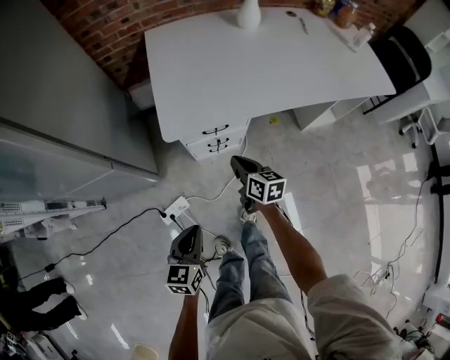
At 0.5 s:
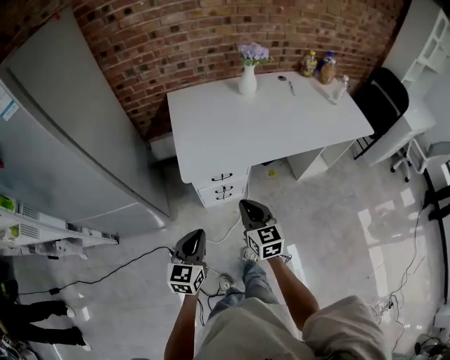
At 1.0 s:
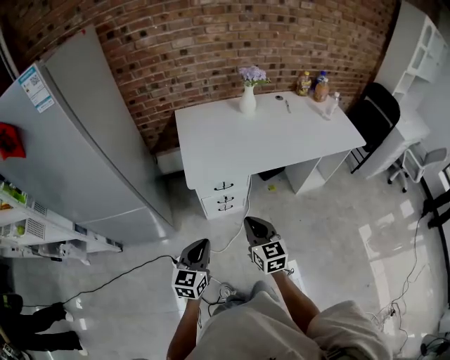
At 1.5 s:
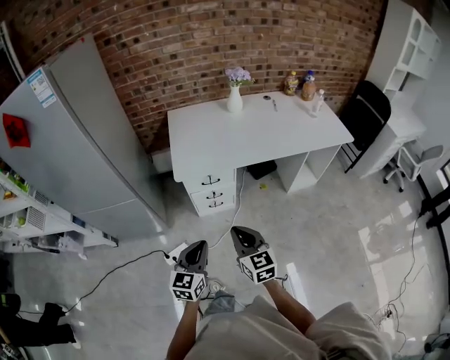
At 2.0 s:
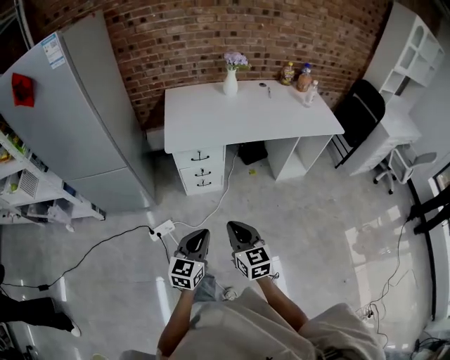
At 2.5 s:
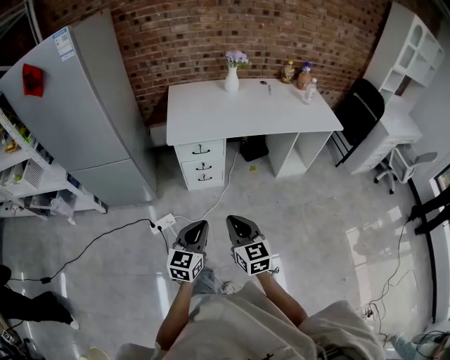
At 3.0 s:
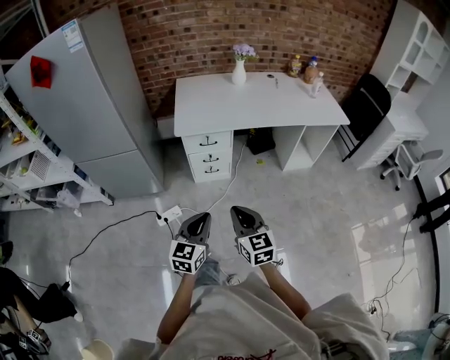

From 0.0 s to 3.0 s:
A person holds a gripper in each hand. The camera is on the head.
From 0.0 s to 1.5 s: The left gripper shifts approximately 20 cm upward, backward and to the right; the right gripper is displaced backward and upward by about 35 cm, and changes its angle by roughly 30 degrees.
From 1.5 s to 3.0 s: The right gripper moves backward, some 15 cm. Meanwhile the left gripper travels backward and to the right by approximately 15 cm.

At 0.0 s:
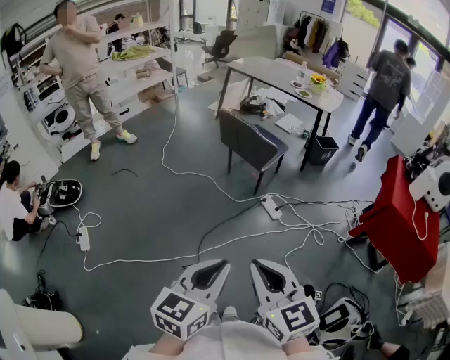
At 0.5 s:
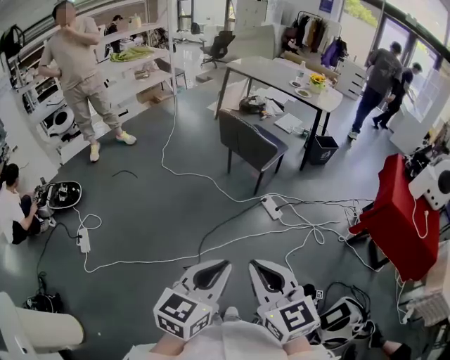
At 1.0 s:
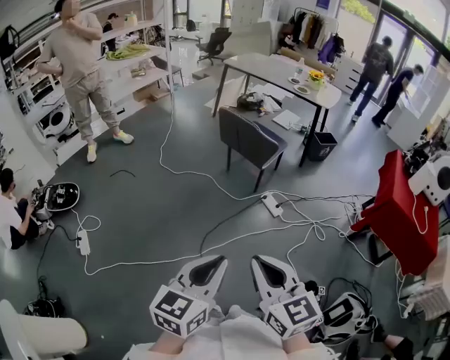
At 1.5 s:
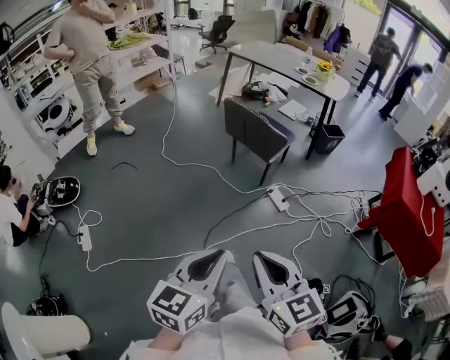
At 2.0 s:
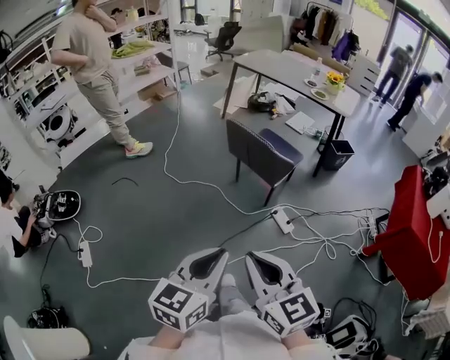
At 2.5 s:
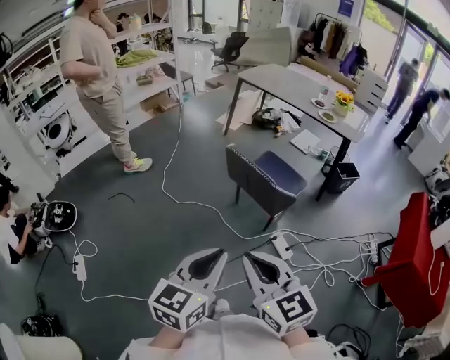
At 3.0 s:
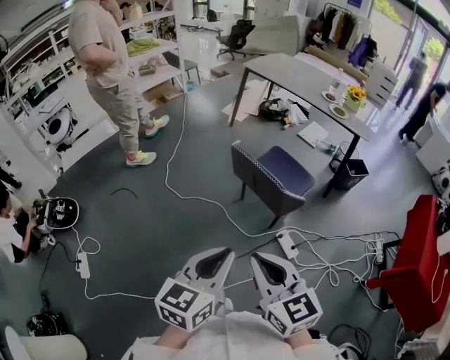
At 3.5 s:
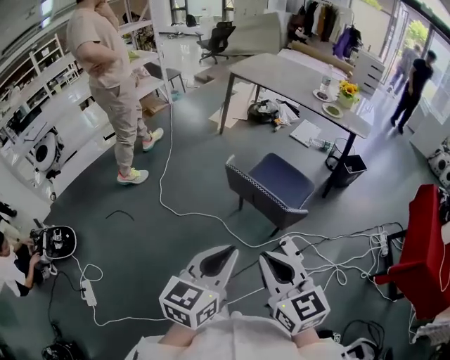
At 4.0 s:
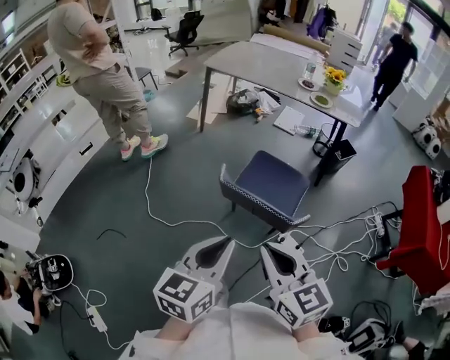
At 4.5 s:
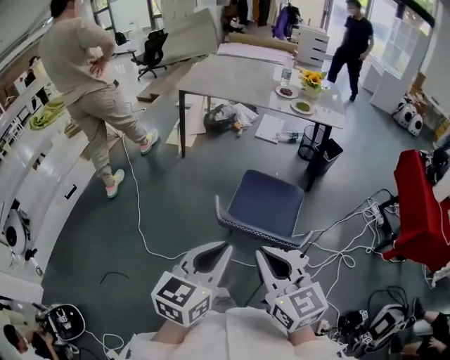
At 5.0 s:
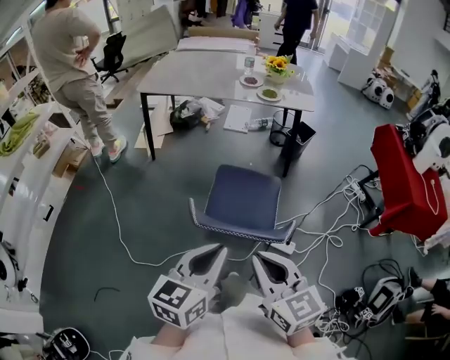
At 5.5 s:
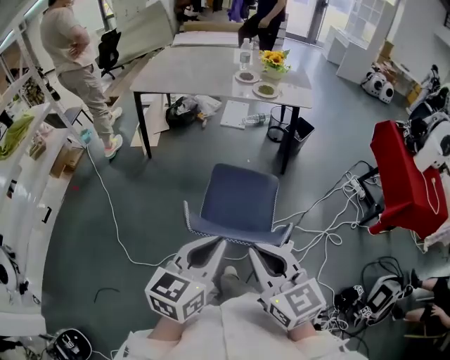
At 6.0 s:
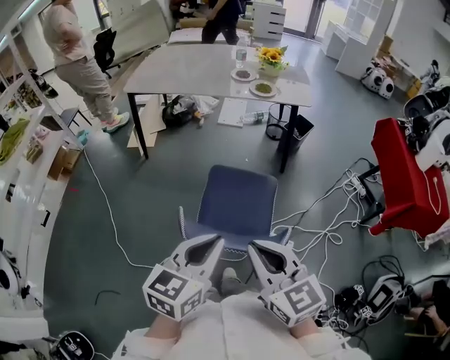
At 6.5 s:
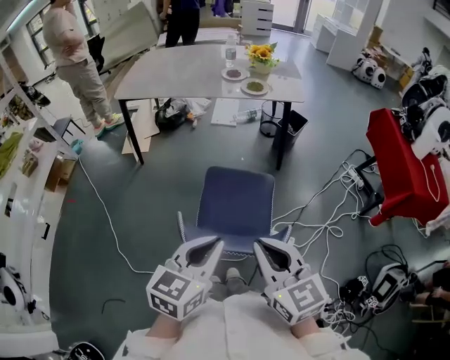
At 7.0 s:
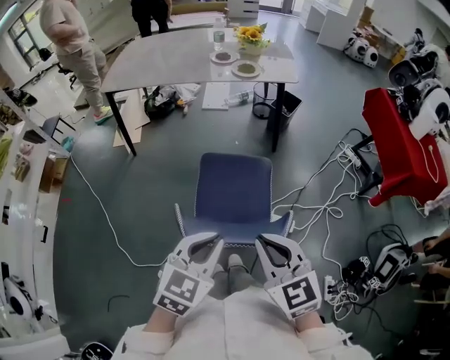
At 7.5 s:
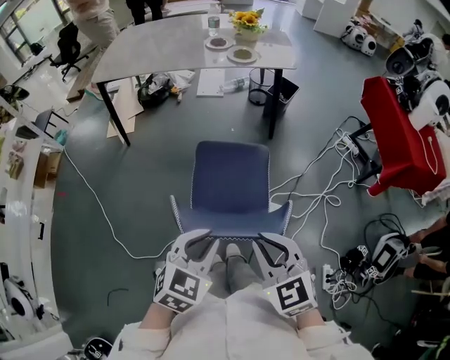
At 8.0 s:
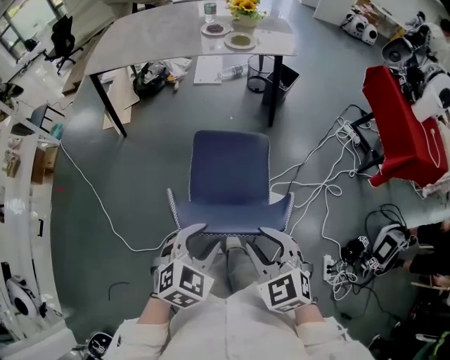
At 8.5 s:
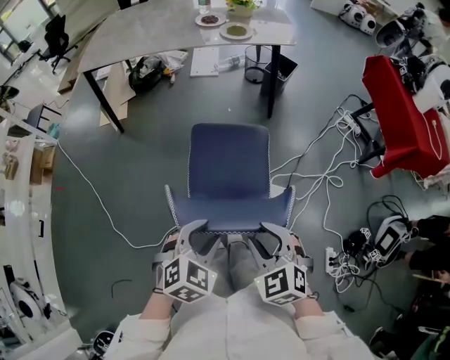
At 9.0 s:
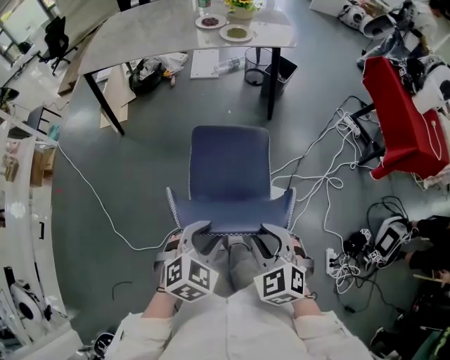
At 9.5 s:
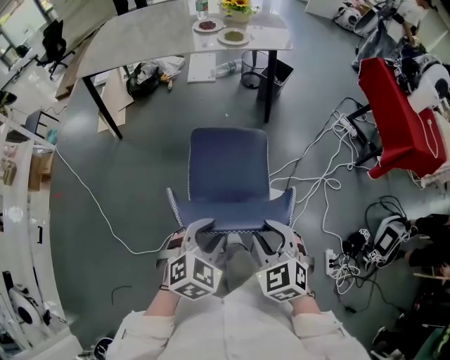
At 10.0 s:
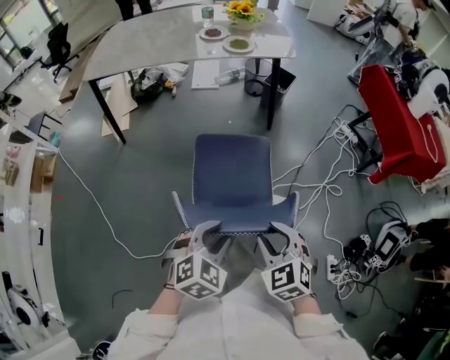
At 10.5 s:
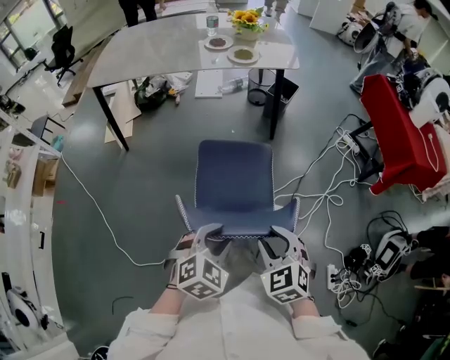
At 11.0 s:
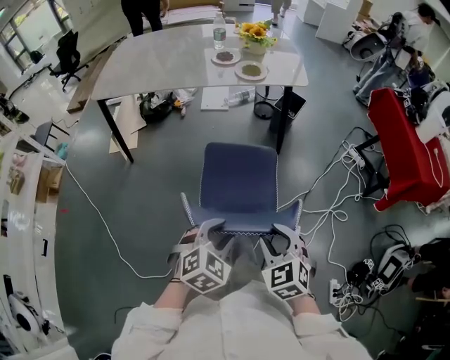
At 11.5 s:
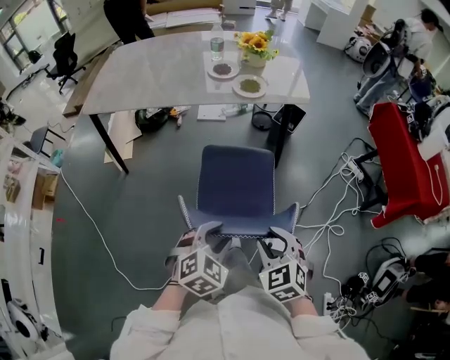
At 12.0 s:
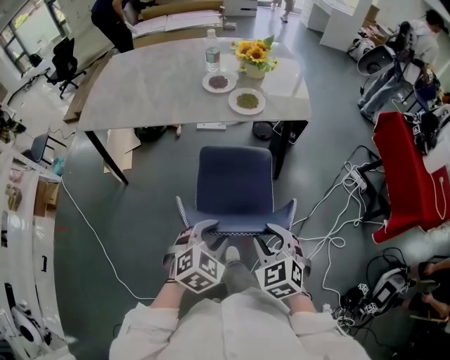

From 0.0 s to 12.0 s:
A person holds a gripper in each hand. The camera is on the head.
From 0.0 s to 2.0 s: The two grippers go about 20 cm forward.
From 2.0 s to 4.0 s: The two grippers travel together, forward, approximately 40 cm.
From 4.0 s to 6.0 s: Both grippers move forward, approximately 20 cm. The left gripper rotates approximately 20 degrees.
From 6.0 s to 8.0 s: The two grippers go roughly 15 cm downward. The left gripper rotates some 40 degrees, and opens its fingers; the right gripper changes its angle by roughly 30 degrees, and opens its fingers.
From 8.0 s to 10.0 s: The right gripper ends up approximately 5 cm from where it was.
From 10.0 s to 12.0 s: The grippers both shift forward by approximately 30 cm.

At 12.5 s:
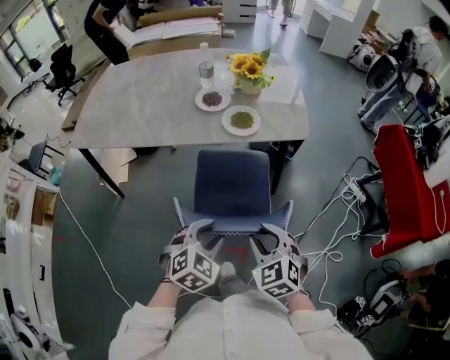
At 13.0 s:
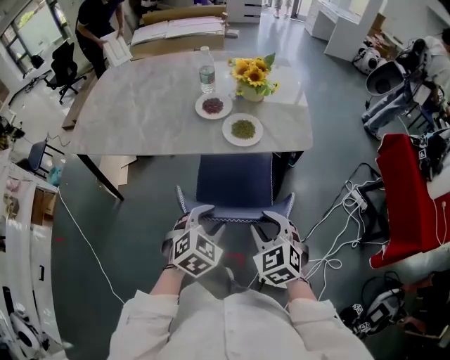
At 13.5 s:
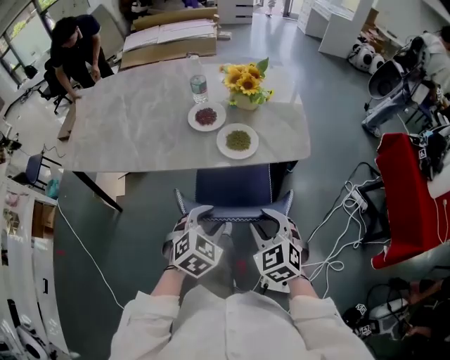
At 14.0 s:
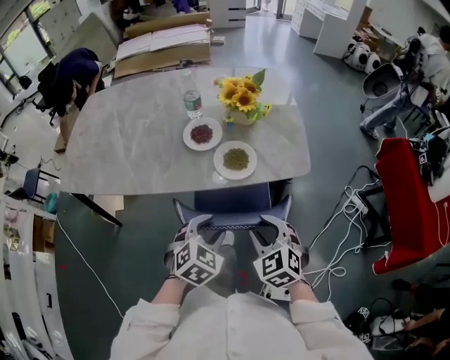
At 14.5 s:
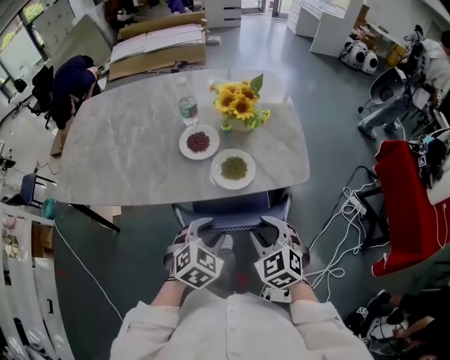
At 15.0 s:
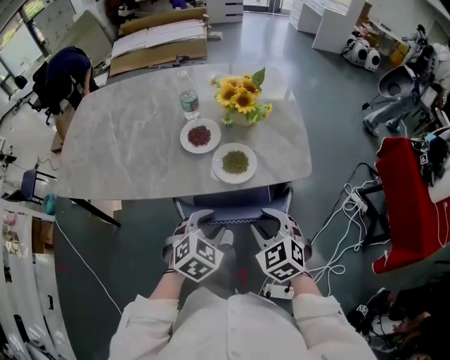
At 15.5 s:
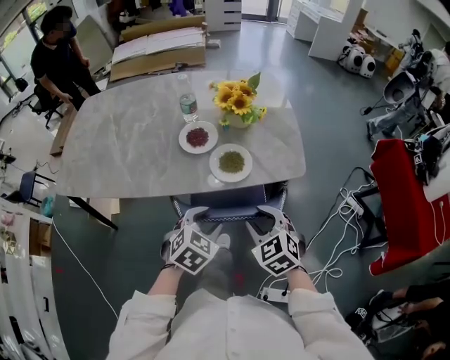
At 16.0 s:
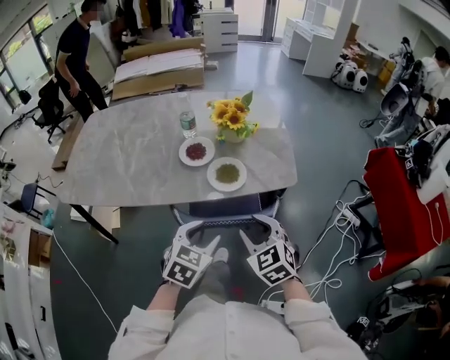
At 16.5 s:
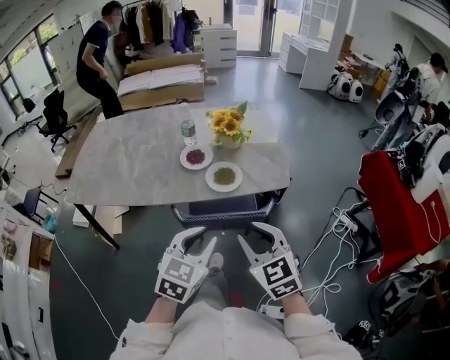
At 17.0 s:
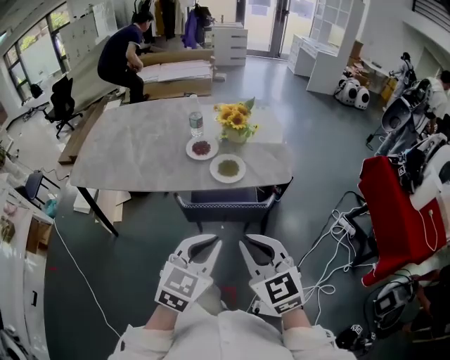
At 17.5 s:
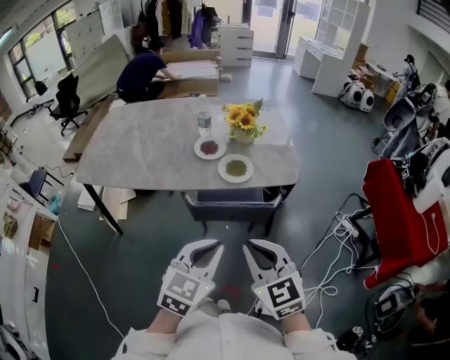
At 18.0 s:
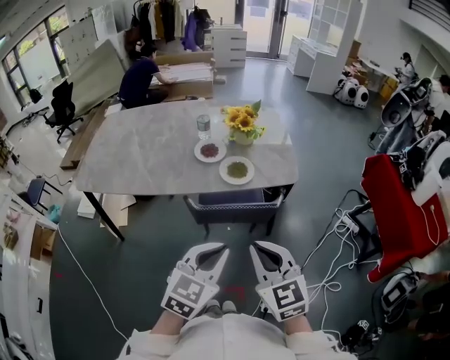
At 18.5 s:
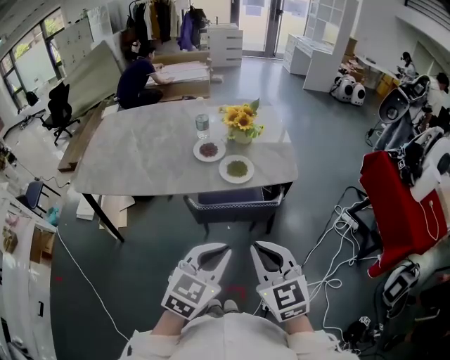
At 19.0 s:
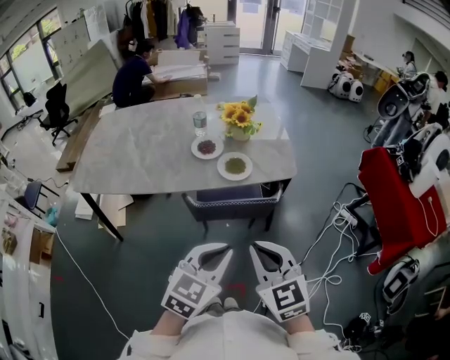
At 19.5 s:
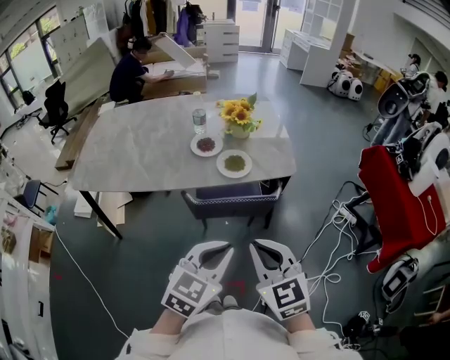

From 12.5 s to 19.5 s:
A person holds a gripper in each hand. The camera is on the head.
From 12.5 s to 14.5 s: The grippers both shift forward by roughly 25 cm.
From 14.5 s to 16.0 s: The left gripper ends up roughly 5 cm from where it was, while the right gripper shifts by about 5 cm.
From 16.0 s to 17.5 s: The grippers both shift backward and upward by approximately 20 cm. The left gripper closes up; the right gripper closes its fingers.
From 17.5 s to 19.5 s: The grippers stay close to where they were, moving slightly.

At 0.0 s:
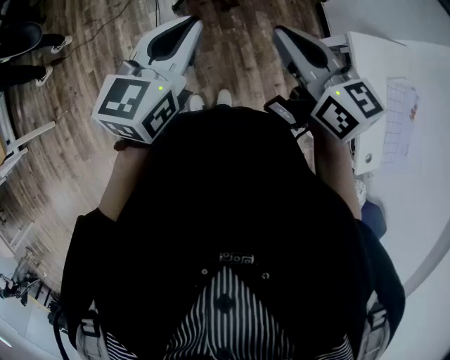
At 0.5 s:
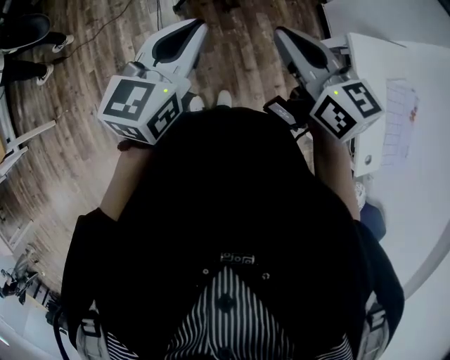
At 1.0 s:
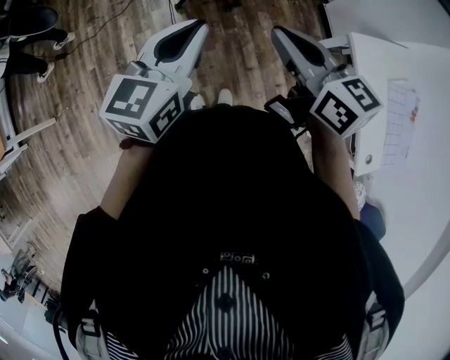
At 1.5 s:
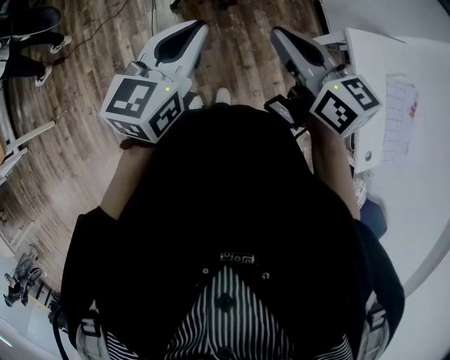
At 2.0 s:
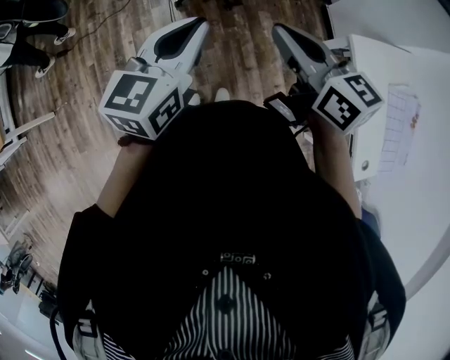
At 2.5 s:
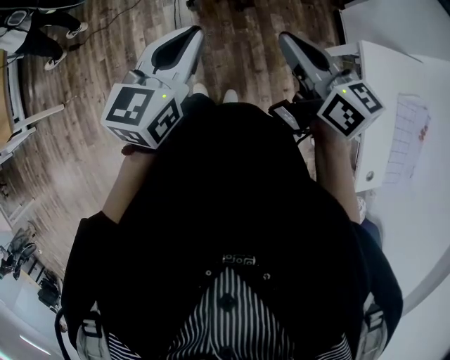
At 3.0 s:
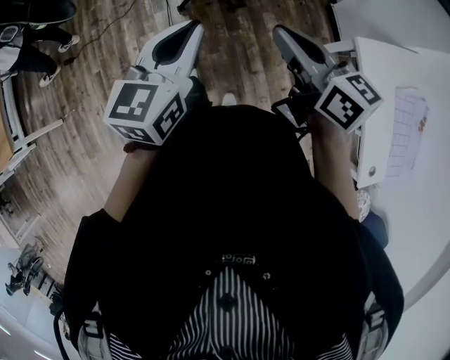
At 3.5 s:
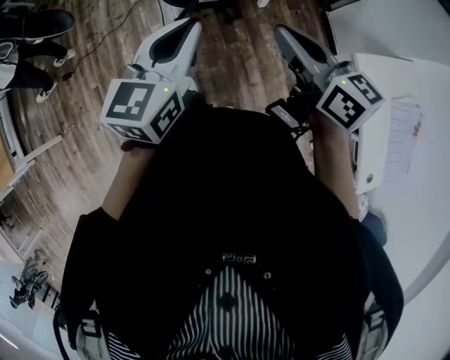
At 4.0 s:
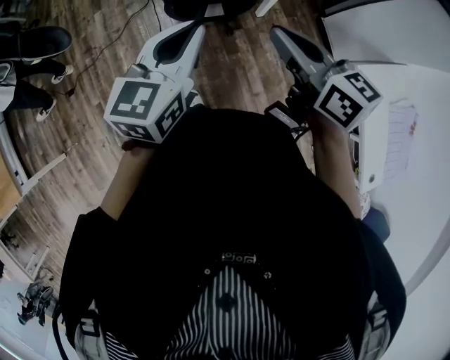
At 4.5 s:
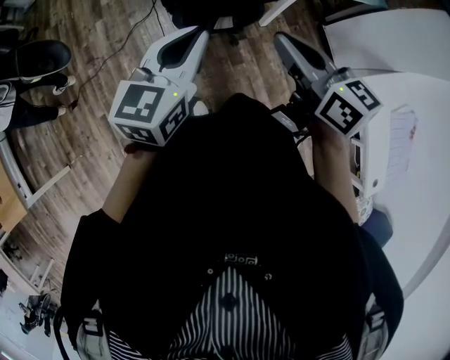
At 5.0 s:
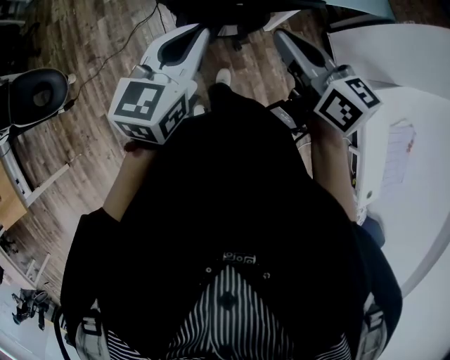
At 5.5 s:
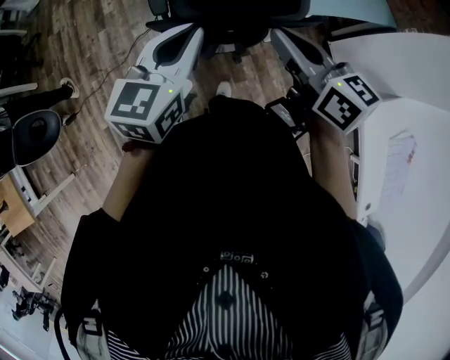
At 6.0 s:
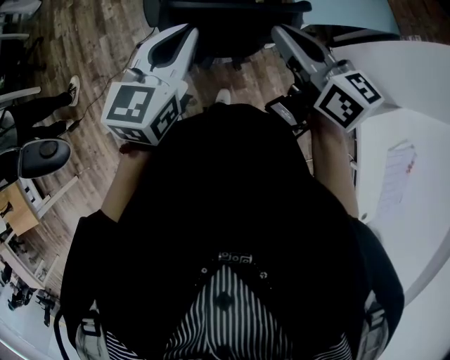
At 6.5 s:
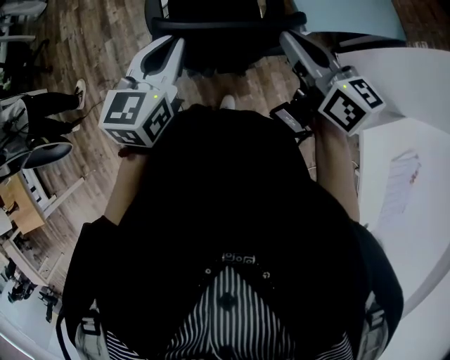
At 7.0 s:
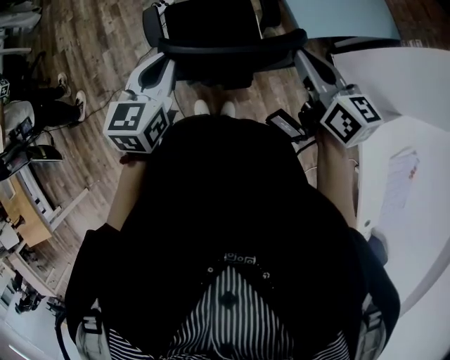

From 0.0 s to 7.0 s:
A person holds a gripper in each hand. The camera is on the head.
From 0.0 s to 2.0 s: The grippers stay close to where they were, moving slightly.
From 2.0 s to 3.5 s: The two grippers go about 15 cm forward.
From 3.5 s to 5.0 s: Both grippers travel together forward and to the left, some 25 cm.
From 5.0 s to 7.0 s: The left gripper goes some 20 cm forward, while the right gripper travels forward and to the right by approximately 25 cm.
